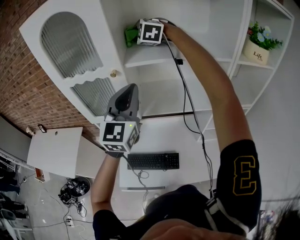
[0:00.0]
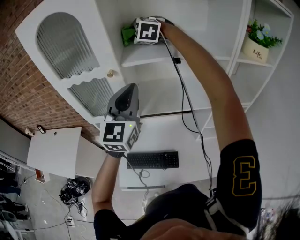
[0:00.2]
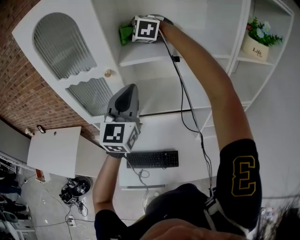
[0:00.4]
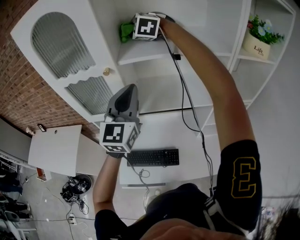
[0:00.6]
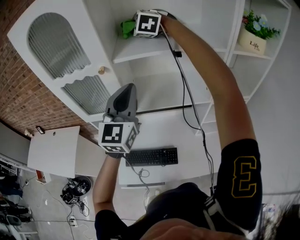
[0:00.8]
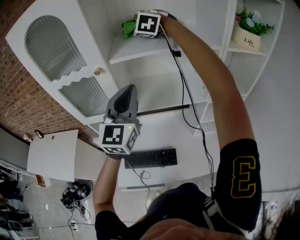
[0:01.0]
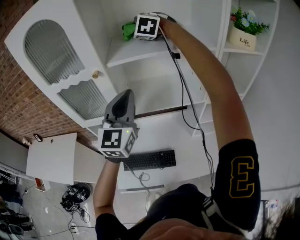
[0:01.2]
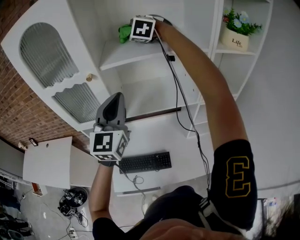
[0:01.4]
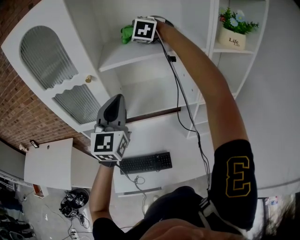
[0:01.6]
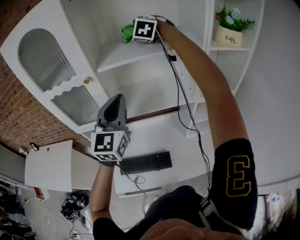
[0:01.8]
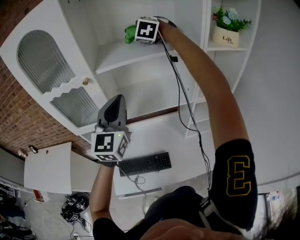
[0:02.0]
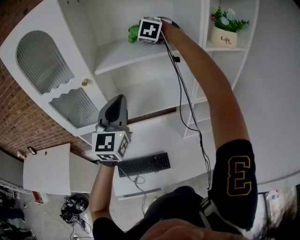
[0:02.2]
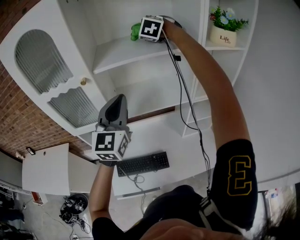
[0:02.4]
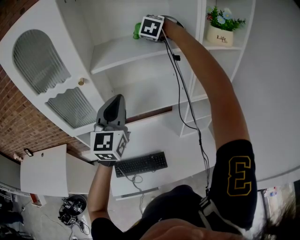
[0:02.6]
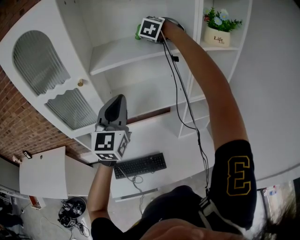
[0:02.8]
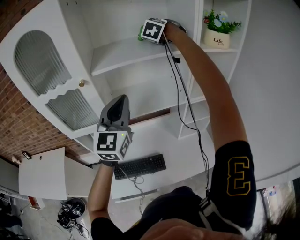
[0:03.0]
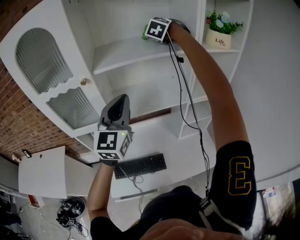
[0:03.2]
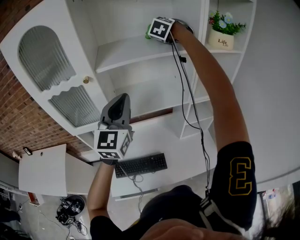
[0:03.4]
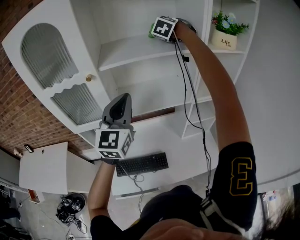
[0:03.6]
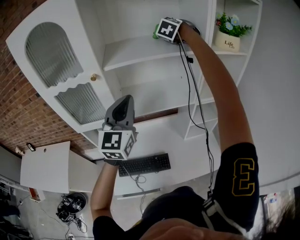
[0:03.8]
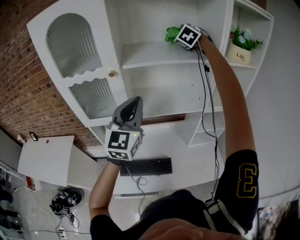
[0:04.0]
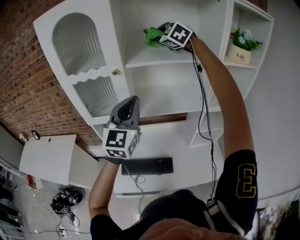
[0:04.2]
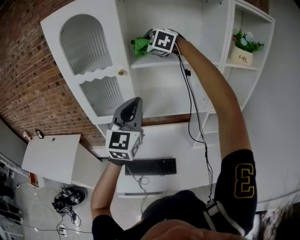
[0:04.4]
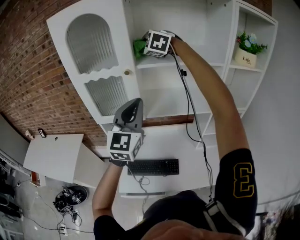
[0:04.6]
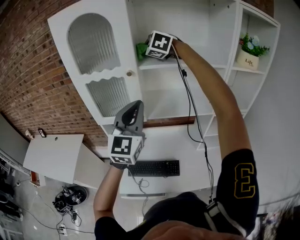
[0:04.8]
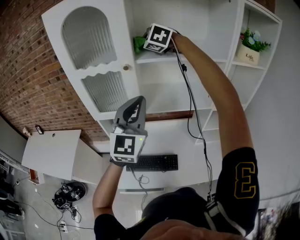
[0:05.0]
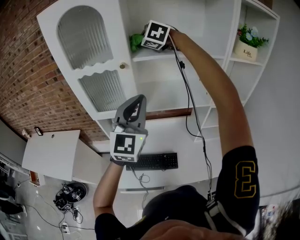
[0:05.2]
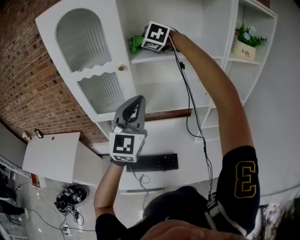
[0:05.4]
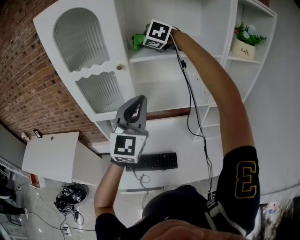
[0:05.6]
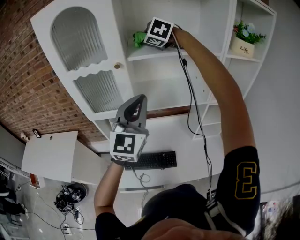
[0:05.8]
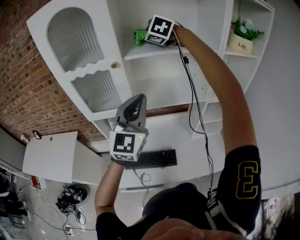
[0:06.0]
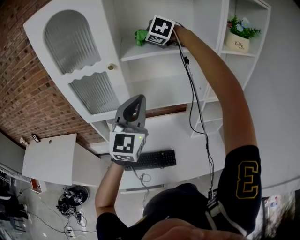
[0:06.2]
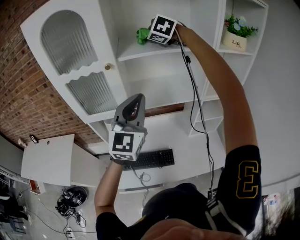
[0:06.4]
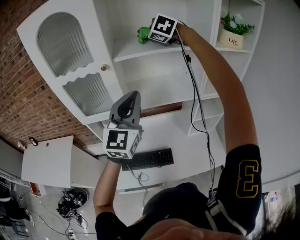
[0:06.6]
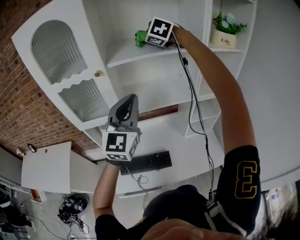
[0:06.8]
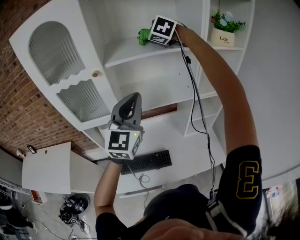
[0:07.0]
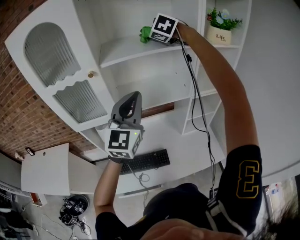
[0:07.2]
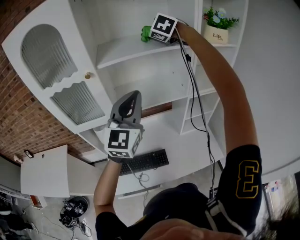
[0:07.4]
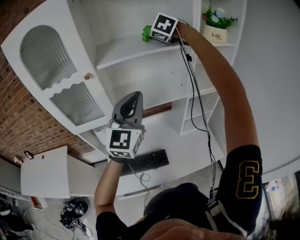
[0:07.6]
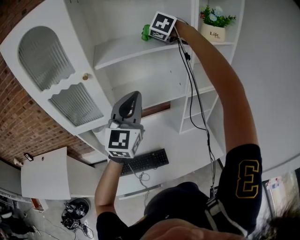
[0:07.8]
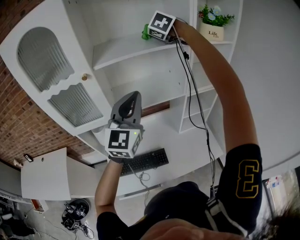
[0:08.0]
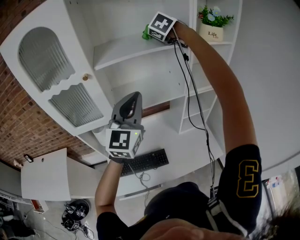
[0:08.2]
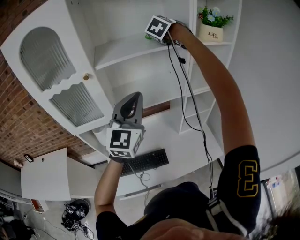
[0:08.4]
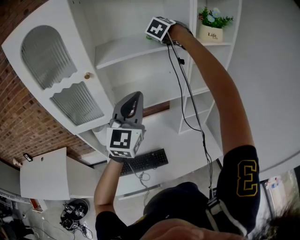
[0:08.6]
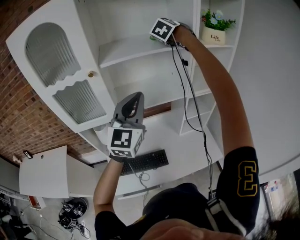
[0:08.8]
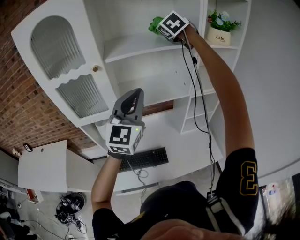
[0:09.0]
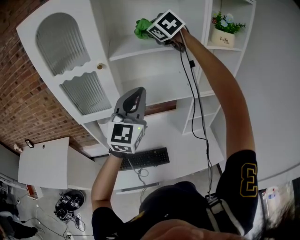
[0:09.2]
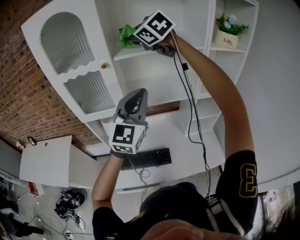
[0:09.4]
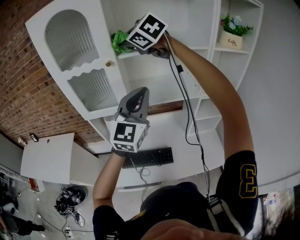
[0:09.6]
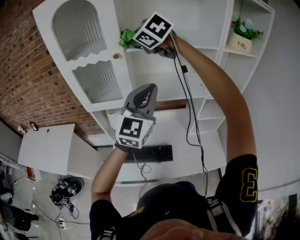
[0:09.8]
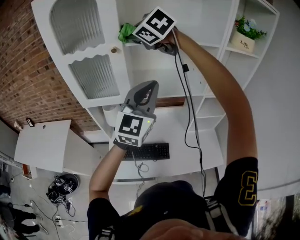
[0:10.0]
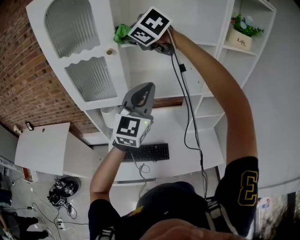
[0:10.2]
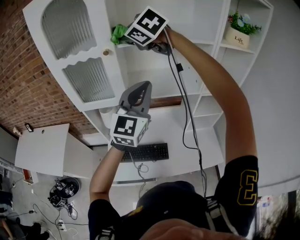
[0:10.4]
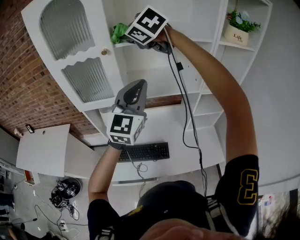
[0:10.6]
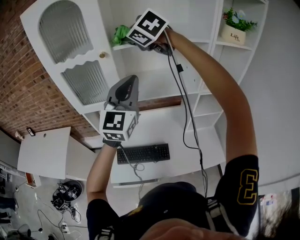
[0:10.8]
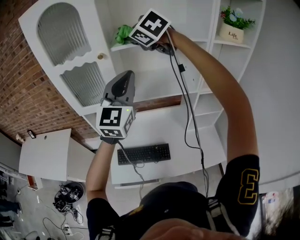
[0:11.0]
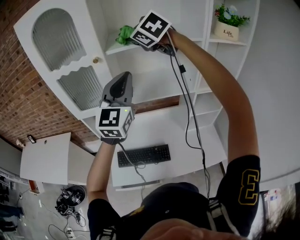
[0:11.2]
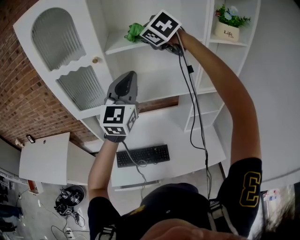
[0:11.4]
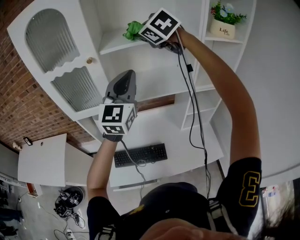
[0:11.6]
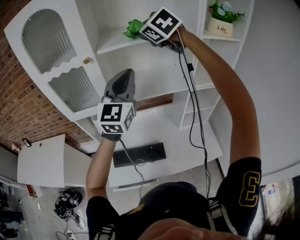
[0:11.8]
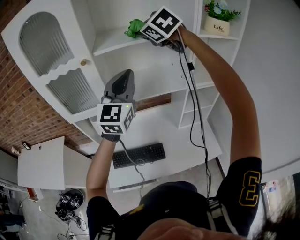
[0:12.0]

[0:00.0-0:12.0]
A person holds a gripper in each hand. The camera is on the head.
0:00.0 to 0:01.6: The right gripper is displaced to the right by about 10 cm.
0:01.6 to 0:03.0: The right gripper goes approximately 15 cm to the right, and rotates approximately 30 degrees.
0:03.0 to 0:04.4: The left gripper is displaced backward and to the left by roughly 10 cm; the right gripper moves to the left and backward, about 25 cm, and swivels some 40 degrees.
0:04.4 to 0:06.0: The grippers make only small movements.
0:06.0 to 0:07.6: The left gripper moves to the right, approximately 5 cm; the right gripper shifts roughly 15 cm to the right.
0:09.0 to 0:10.4: The right gripper travels to the left and backward by some 25 cm, and changes its angle by roughly 30 degrees.
0:10.4 to 0:12.0: The right gripper heads to the right, covering some 15 cm; the left gripper changes place by roughly 5 cm.

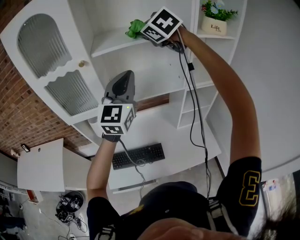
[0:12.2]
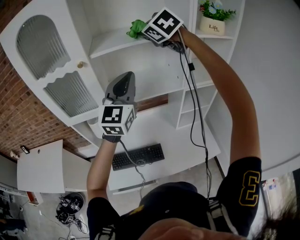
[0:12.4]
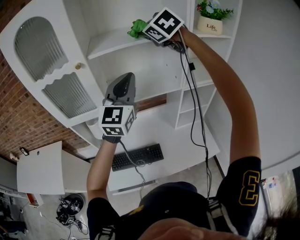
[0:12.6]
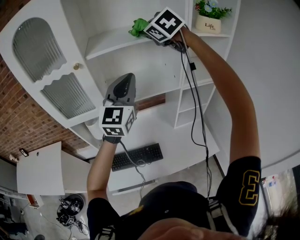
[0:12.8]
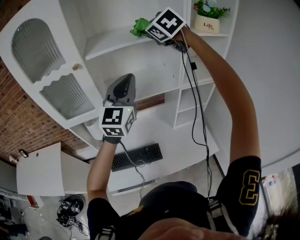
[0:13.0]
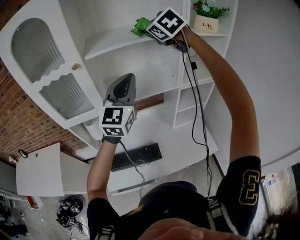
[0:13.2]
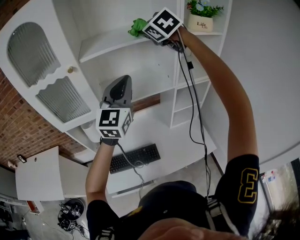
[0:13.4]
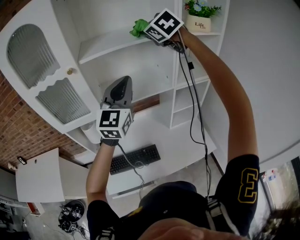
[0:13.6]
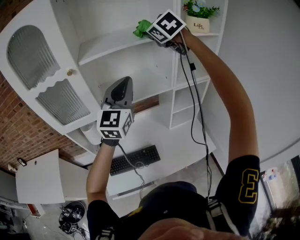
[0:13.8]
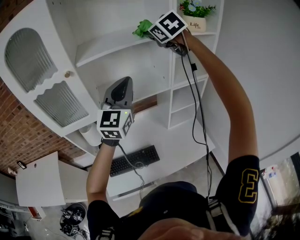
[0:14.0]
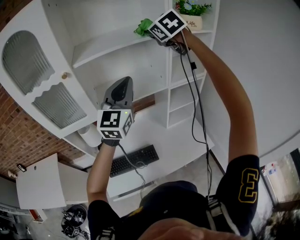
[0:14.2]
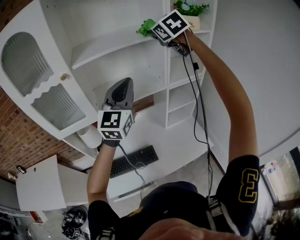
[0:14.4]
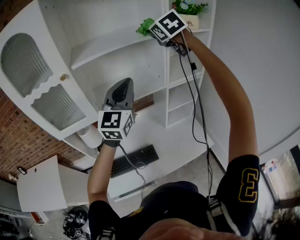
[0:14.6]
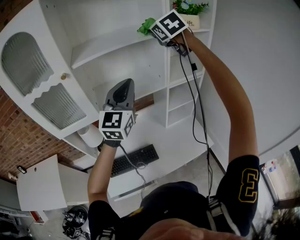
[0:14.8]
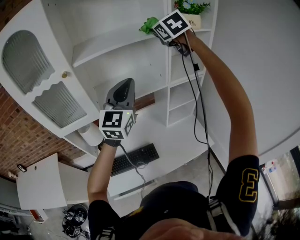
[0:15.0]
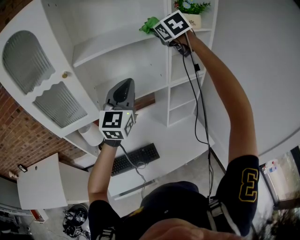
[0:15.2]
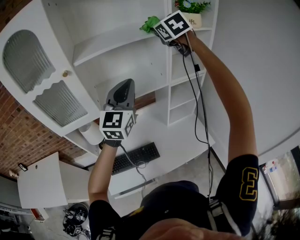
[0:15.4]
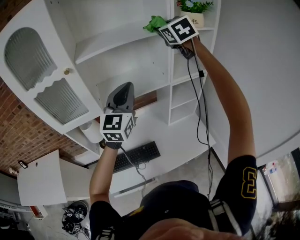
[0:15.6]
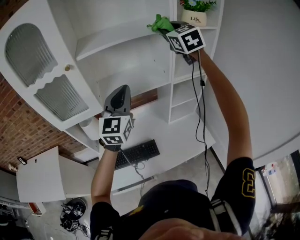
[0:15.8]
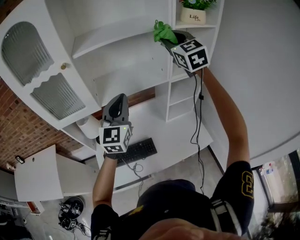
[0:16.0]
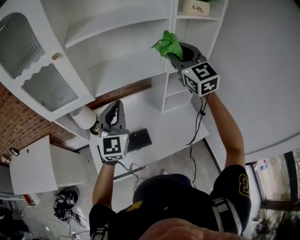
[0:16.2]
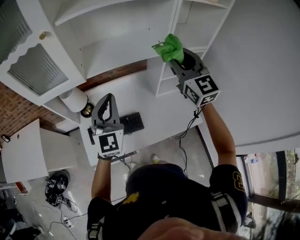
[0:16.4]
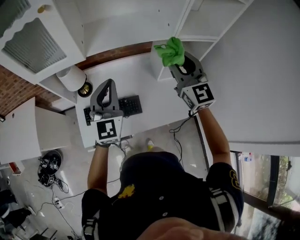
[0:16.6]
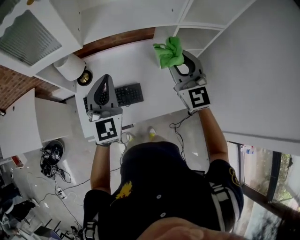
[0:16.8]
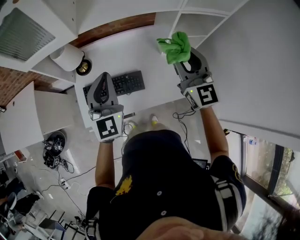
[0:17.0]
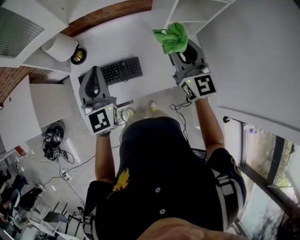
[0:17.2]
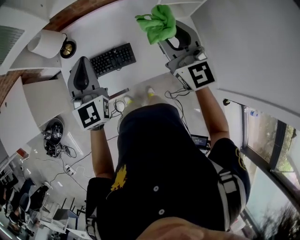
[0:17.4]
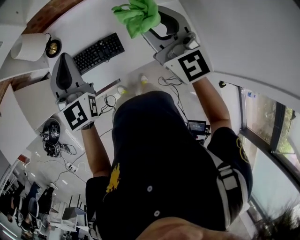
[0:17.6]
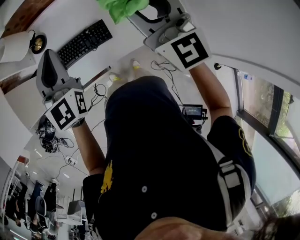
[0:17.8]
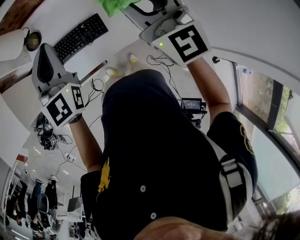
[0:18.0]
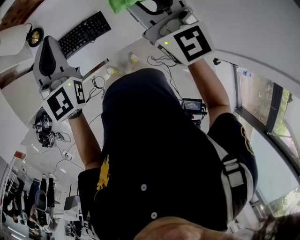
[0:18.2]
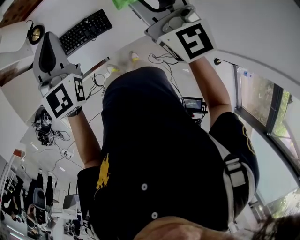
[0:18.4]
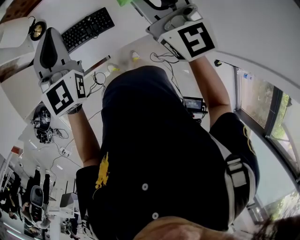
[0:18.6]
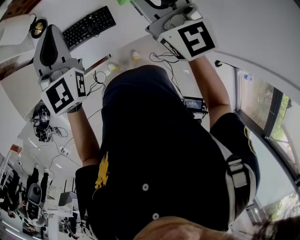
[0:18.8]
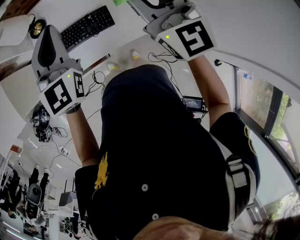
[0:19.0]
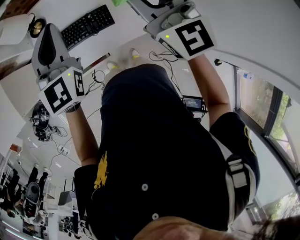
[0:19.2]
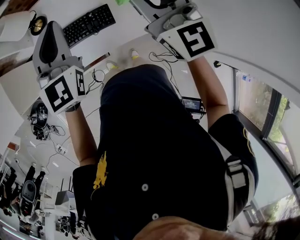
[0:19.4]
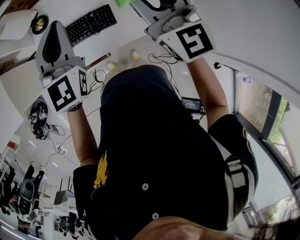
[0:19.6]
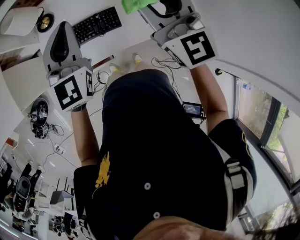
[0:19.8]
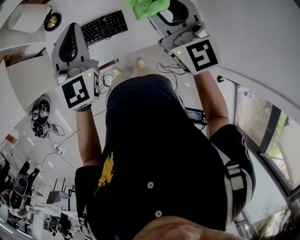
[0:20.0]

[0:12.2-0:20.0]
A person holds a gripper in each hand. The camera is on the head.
0:12.2 to 0:13.8: The right gripper is displaced to the right by some 10 cm.
0:13.8 to 0:15.4: The right gripper goes some 5 cm to the right.
0:15.4 to 0:16.8: The right gripper shifts some 35 cm downward and backward, and turns by approximately 30 degrees. The left gripper is displaced downward, to the left and backward by some 20 cm, and changes its angle by about 30 degrees.
0:16.8 to 0:18.4: The left gripper is displaced downward by roughly 10 cm, while the right gripper goes about 10 cm backward and downward.
0:18.4 to 0:20.0: The grippers stay close to where they were, moving slightly.

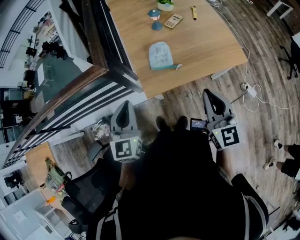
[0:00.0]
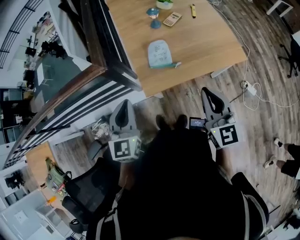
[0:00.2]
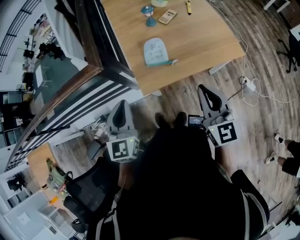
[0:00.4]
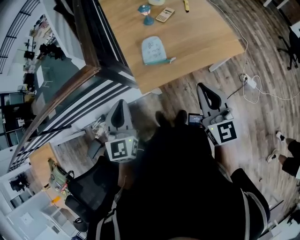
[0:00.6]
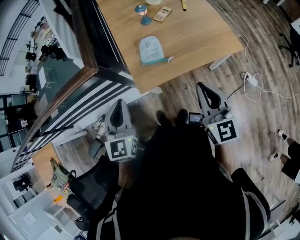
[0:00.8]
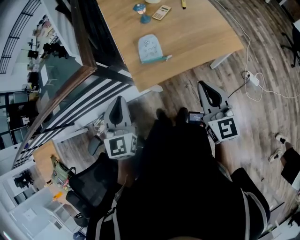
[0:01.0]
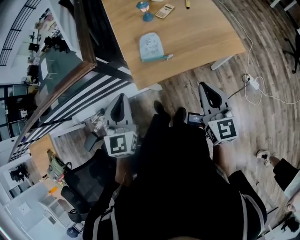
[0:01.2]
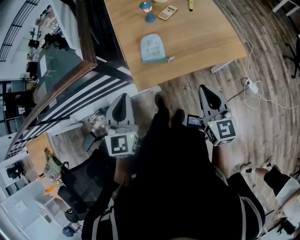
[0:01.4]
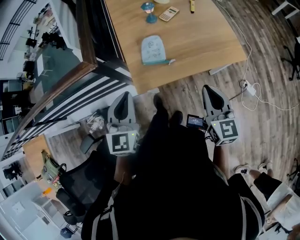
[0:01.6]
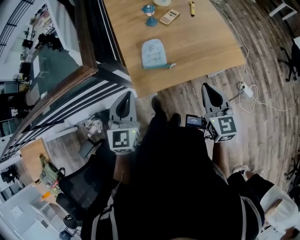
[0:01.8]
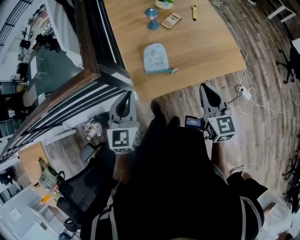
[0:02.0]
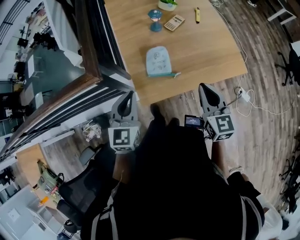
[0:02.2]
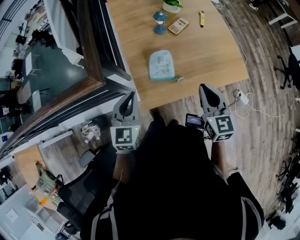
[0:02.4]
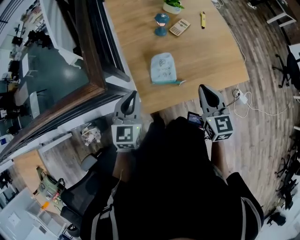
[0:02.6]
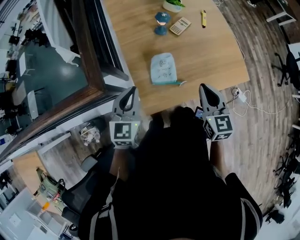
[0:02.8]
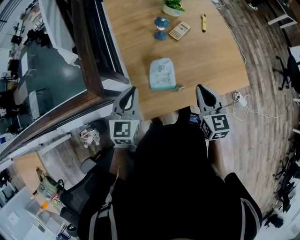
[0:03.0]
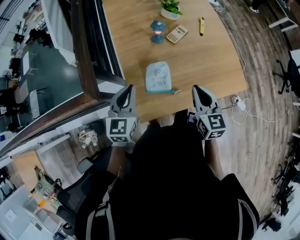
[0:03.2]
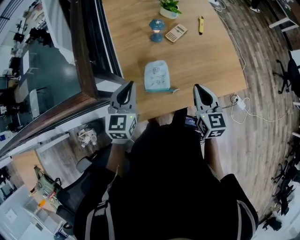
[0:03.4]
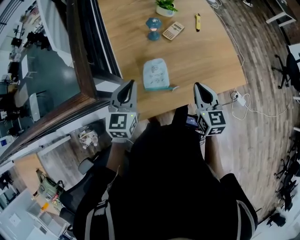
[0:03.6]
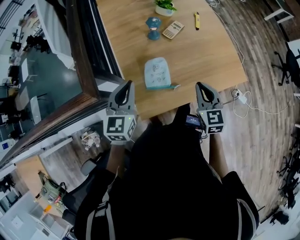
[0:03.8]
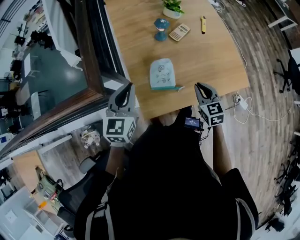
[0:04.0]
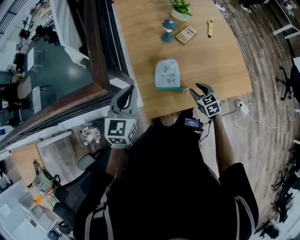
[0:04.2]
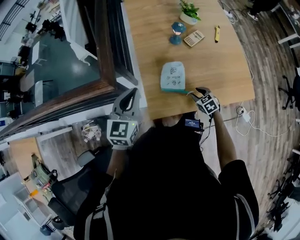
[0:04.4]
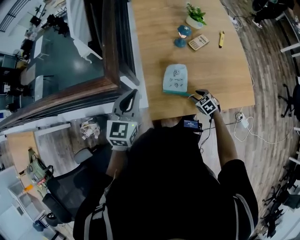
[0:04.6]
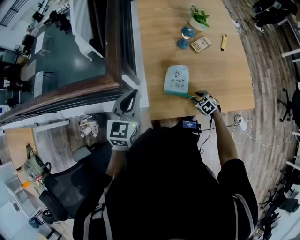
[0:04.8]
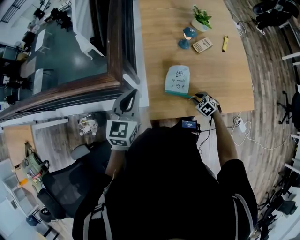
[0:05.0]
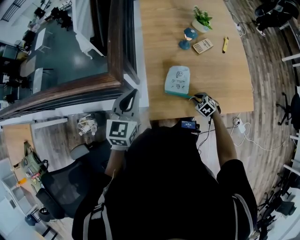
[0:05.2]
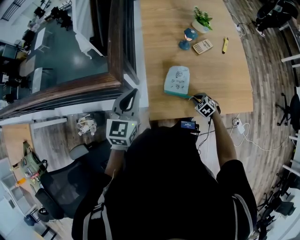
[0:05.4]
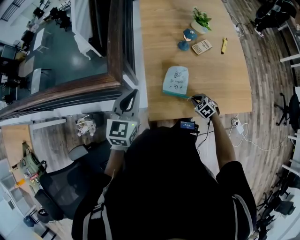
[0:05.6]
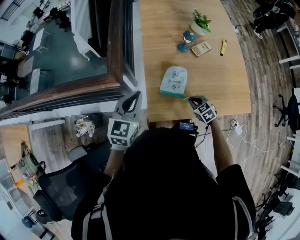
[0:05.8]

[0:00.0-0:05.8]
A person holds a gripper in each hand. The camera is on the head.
0:00.0 to 0:01.4: Both grippers move to the right, roughly 5 cm.
0:01.4 to 0:02.8: The left gripper heads forward and downward, covering approximately 20 cm. Meanwhile the right gripper travels forward and to the left by some 20 cm.
0:02.8 to 0:04.4: The right gripper travels downward by about 25 cm, points its fingers approximately 30 degrees further downward, and opens up.
0:04.4 to 0:05.8: The right gripper closes its fingers.
